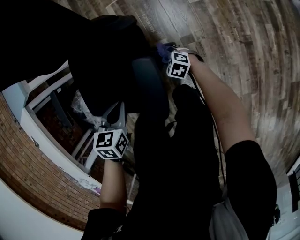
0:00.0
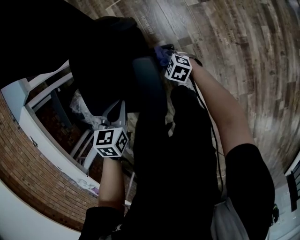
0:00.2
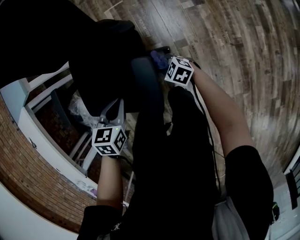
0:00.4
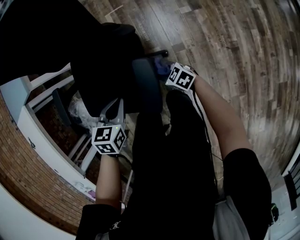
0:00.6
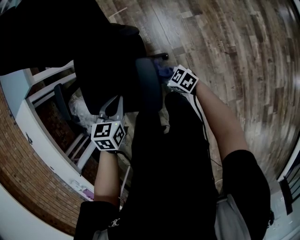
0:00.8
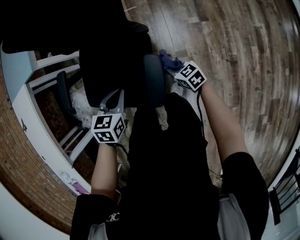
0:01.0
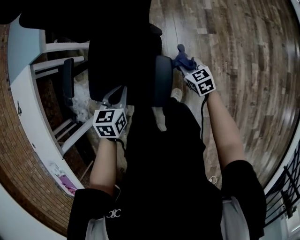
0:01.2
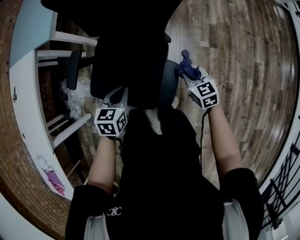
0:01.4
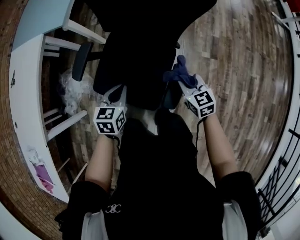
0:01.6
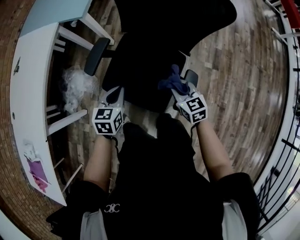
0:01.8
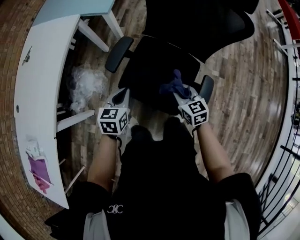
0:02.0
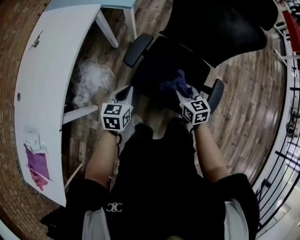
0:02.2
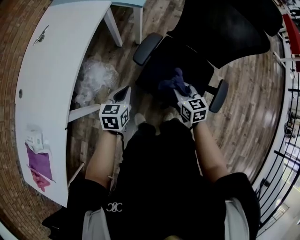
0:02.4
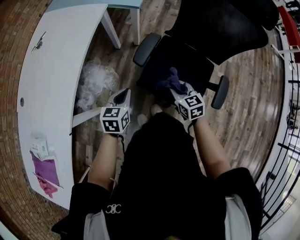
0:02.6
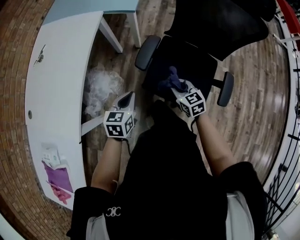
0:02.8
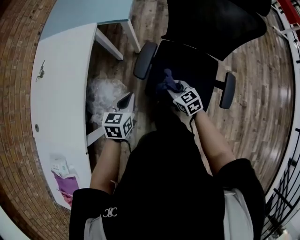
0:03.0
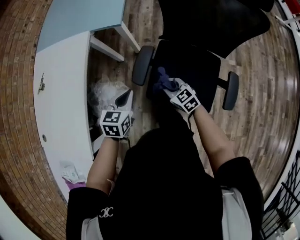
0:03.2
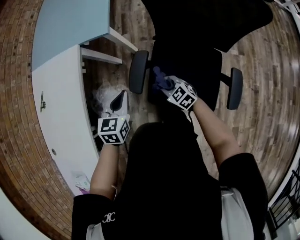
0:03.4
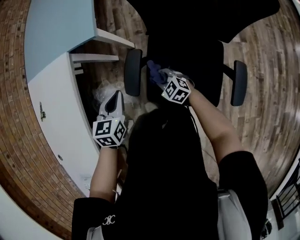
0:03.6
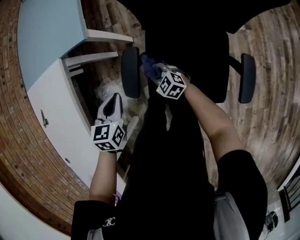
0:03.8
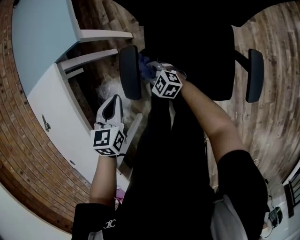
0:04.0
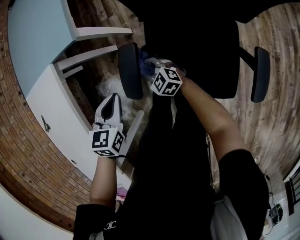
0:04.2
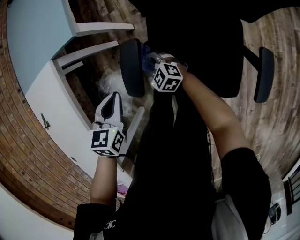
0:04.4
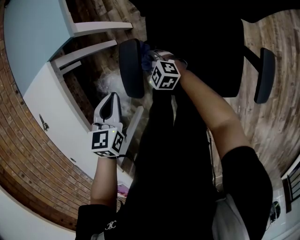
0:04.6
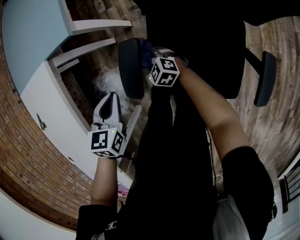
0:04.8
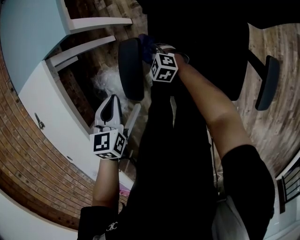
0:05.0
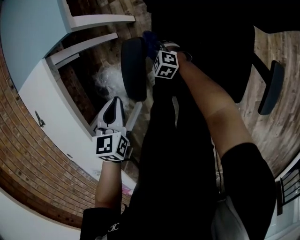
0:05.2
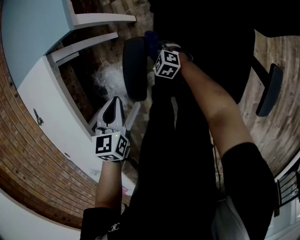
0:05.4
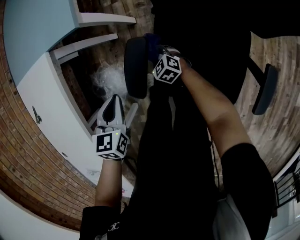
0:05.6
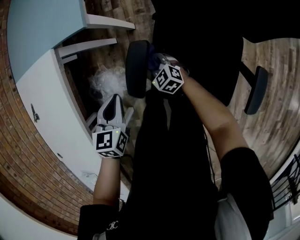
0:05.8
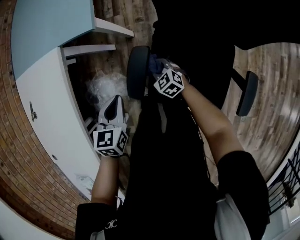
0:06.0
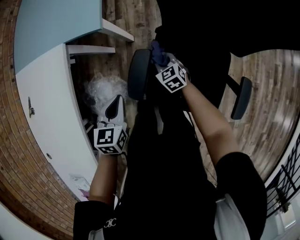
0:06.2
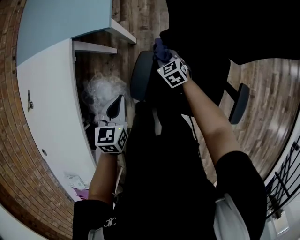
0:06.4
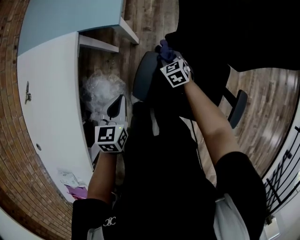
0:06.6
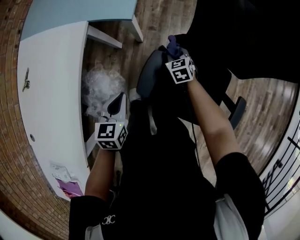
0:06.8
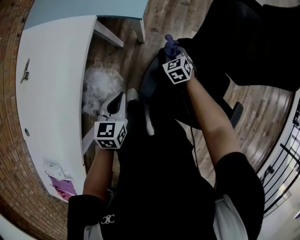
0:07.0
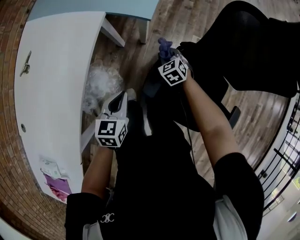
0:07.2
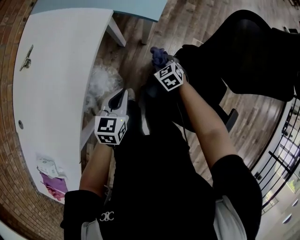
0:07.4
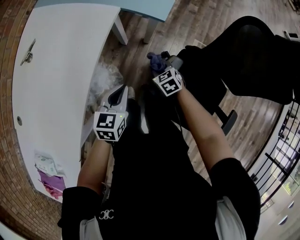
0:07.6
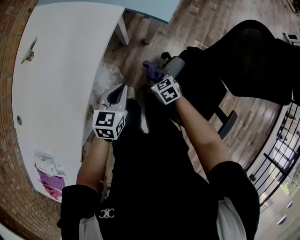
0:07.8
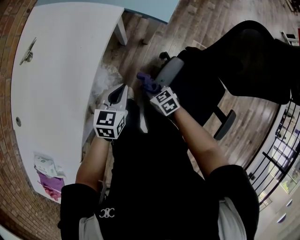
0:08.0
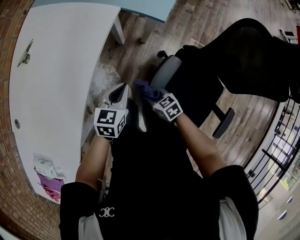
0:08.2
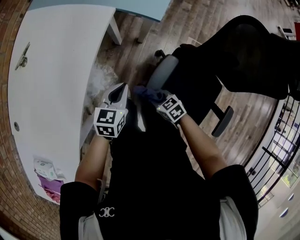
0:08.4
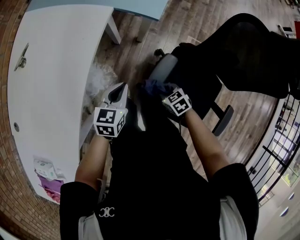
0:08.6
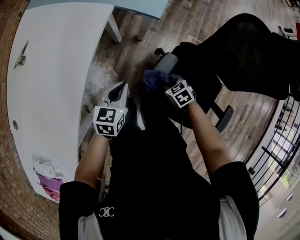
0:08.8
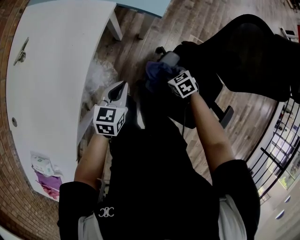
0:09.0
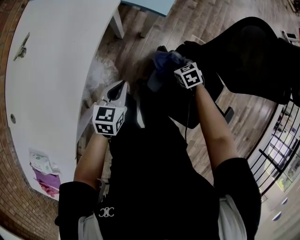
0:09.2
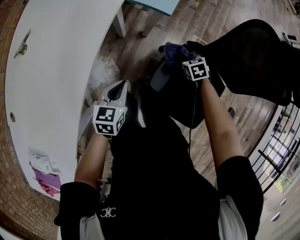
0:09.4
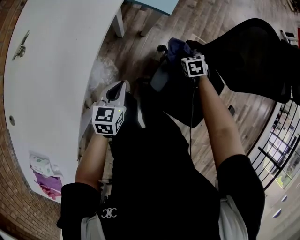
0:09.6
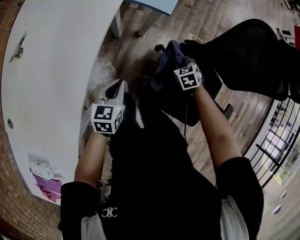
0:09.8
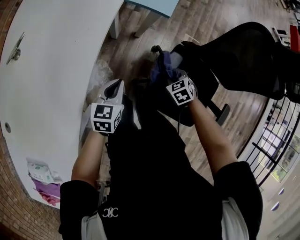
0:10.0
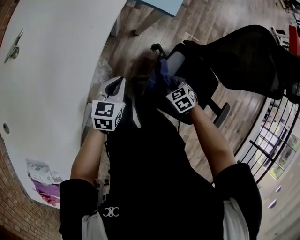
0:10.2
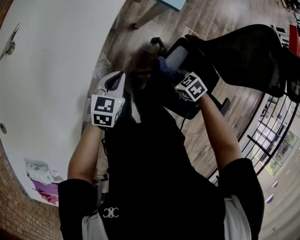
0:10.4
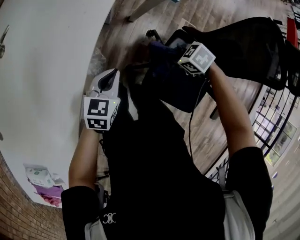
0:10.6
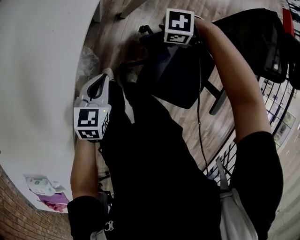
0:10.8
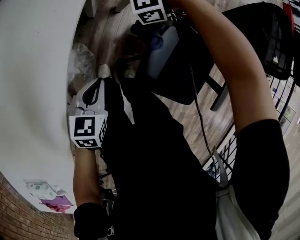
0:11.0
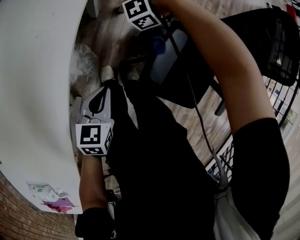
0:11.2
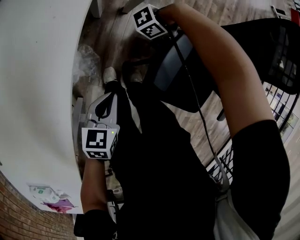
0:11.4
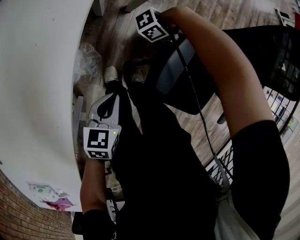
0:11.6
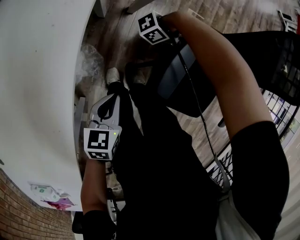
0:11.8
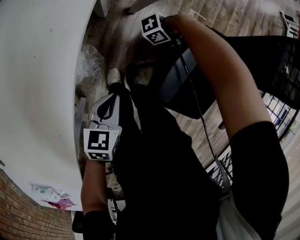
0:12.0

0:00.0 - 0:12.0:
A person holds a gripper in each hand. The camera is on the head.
0:00.0 - 0:01.6: The right gripper moves upward, roughly 40 cm, and rotates approximately 30 degrees. Meanwhile the left gripper shifts about 20 cm upward and to the left, and turns by approximately 30 degrees.
0:01.6 - 0:03.0: Both grippers travel together to the left, approximately 40 cm.
0:03.0 - 0:04.4: The grippers both shift forward and downward by roughly 25 cm. The left gripper swivels some 20 degrees.
0:04.4 - 0:06.0: The right gripper goes downward and returns, approximately 15 cm each way.
0:06.0 - 0:07.6: The left gripper heads to the left, covering roughly 15 cm. The right gripper heads to the left and upward, covering approximately 15 cm.
0:07.6 - 0:09.0: The right gripper is displaced to the right and backward by about 10 cm.
0:09.0 - 0:10.4: The right gripper shifts by roughly 10 cm; the left gripper changes place by about 10 cm.
0:10.4 - 0:12.0: The left gripper travels downward by roughly 10 cm. Meanwhile the right gripper moves downward, approximately 15 cm, and tilts its fingers roughly 40 degrees upward.

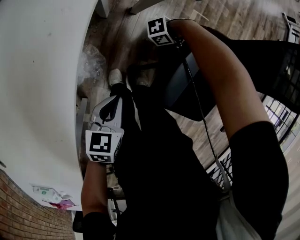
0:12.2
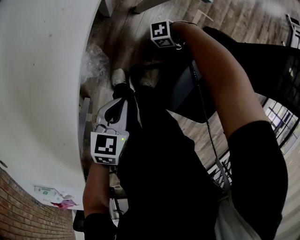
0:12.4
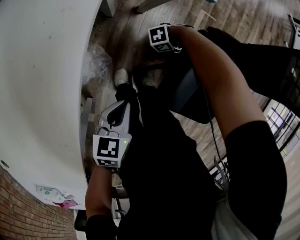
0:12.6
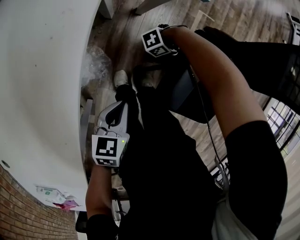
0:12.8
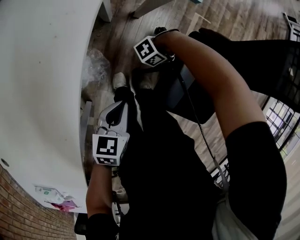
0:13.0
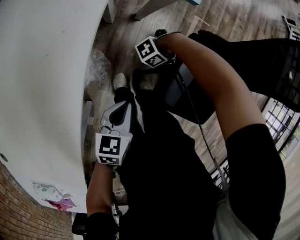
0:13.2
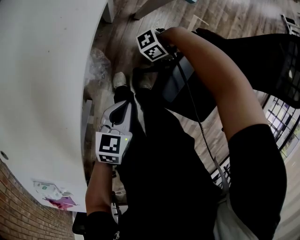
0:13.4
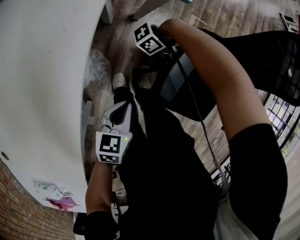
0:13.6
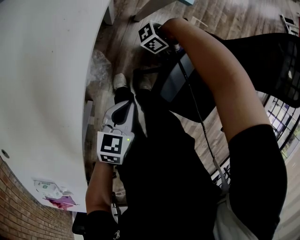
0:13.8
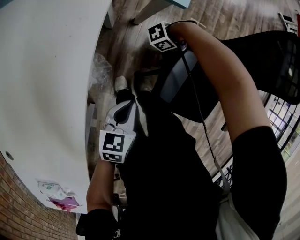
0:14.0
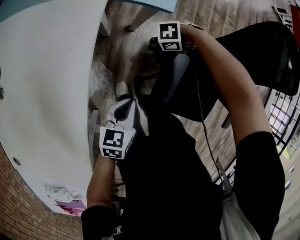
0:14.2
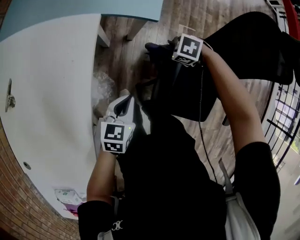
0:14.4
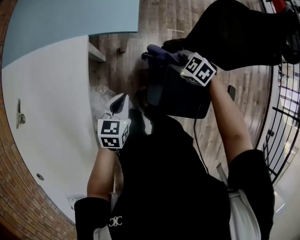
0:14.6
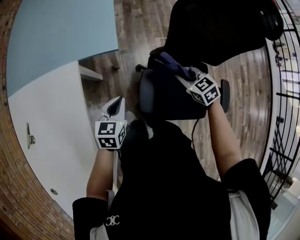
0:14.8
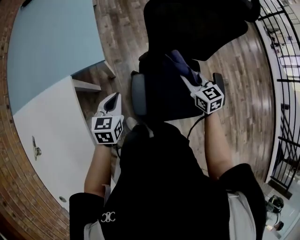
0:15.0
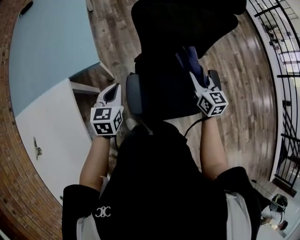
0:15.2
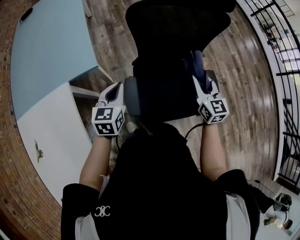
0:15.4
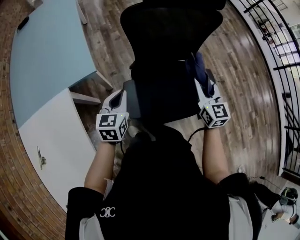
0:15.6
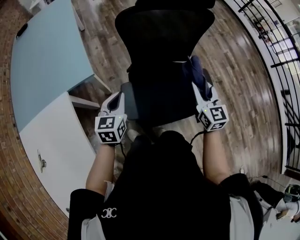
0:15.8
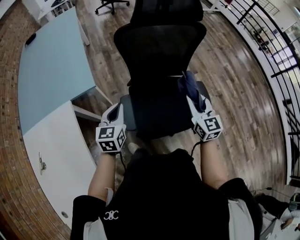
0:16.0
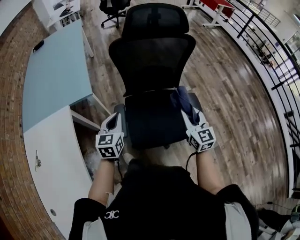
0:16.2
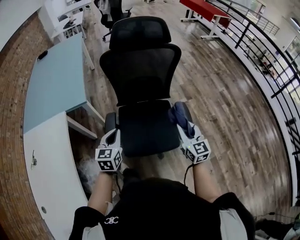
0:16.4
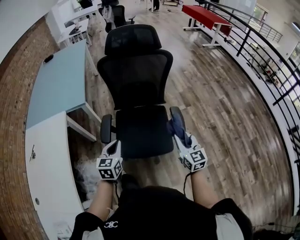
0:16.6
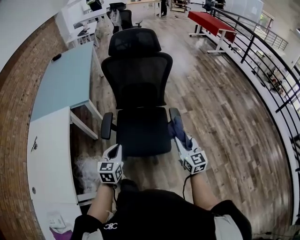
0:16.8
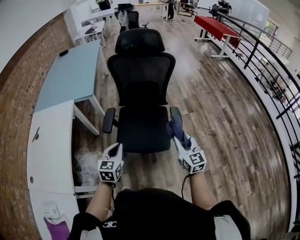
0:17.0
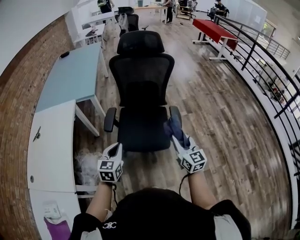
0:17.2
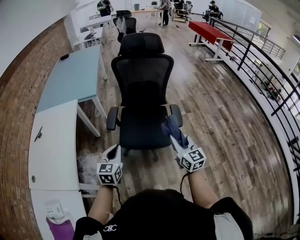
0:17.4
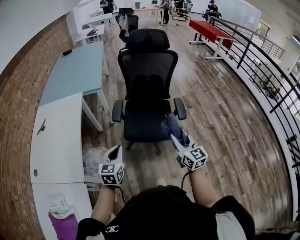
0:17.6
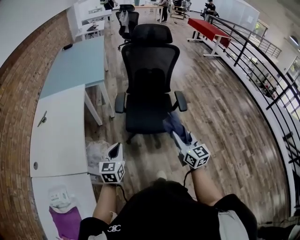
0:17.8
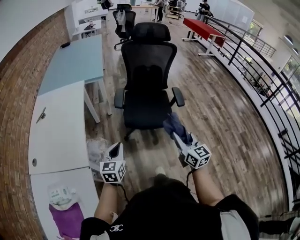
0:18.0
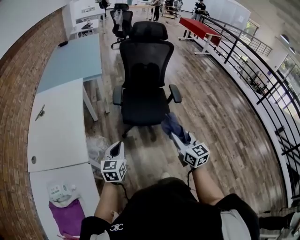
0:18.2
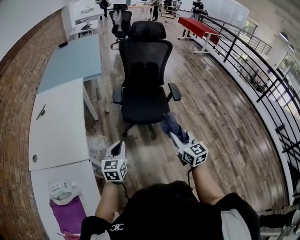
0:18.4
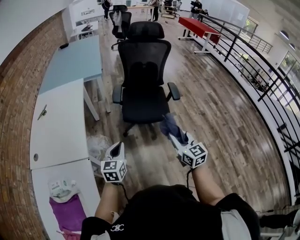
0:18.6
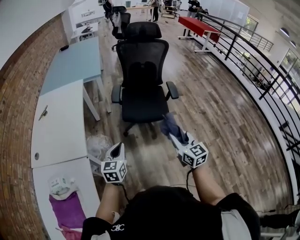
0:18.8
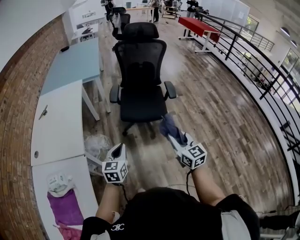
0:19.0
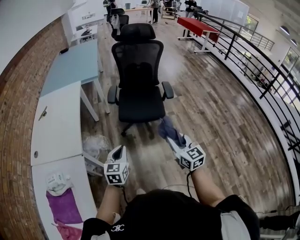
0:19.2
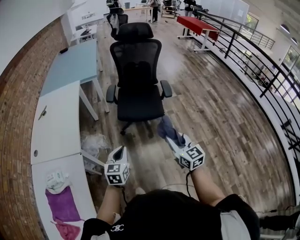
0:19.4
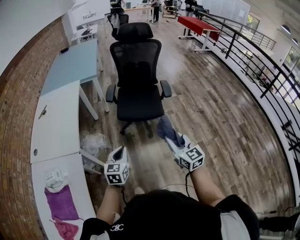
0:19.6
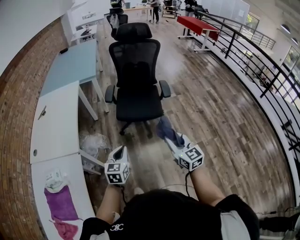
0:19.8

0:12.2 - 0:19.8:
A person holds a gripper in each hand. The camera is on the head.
0:12.2 - 0:13.8: The right gripper is displaced upward by about 10 cm. The left gripper ends up roughly 5 cm from where it was.
0:13.8 - 0:15.2: The right gripper is displaced upward by roughly 35 cm, and rotates about 170 degrees; the left gripper ends up roughly 30 cm from where it was, and changes its angle by roughly 30 degrees.
0:15.2 - 0:16.8: The two grippers go some 40 cm backward and to the right.
0:16.8 - 0:18.2: Both grippers travel together backward and to the left, approximately 35 cm.
0:18.2 - 0:19.8: The right gripper goes roughly 15 cm backward and to the right. The left gripper travels to the right and backward by about 20 cm.

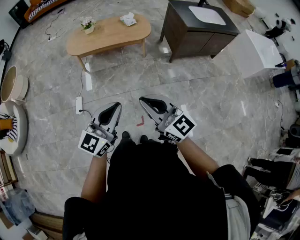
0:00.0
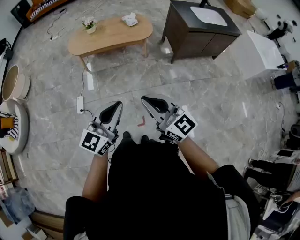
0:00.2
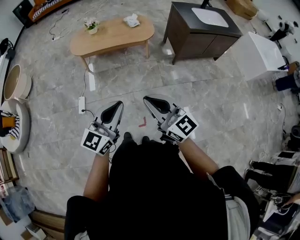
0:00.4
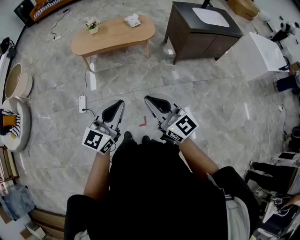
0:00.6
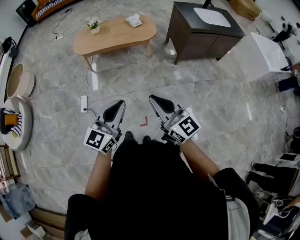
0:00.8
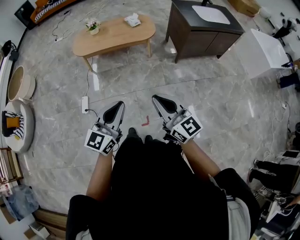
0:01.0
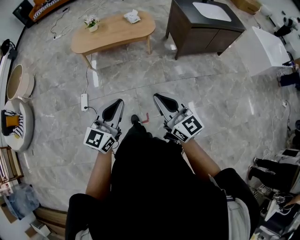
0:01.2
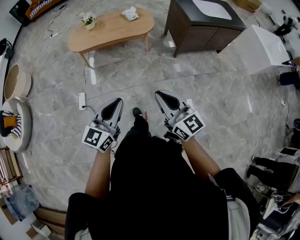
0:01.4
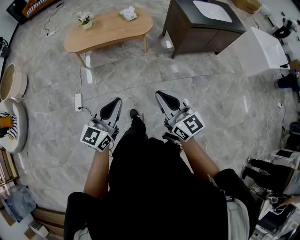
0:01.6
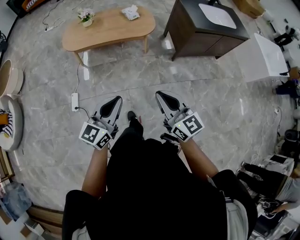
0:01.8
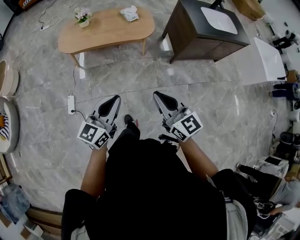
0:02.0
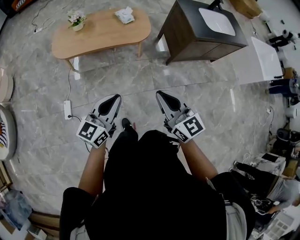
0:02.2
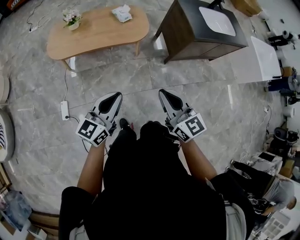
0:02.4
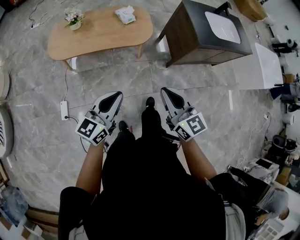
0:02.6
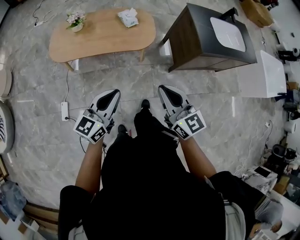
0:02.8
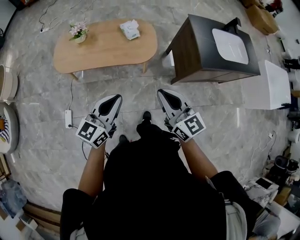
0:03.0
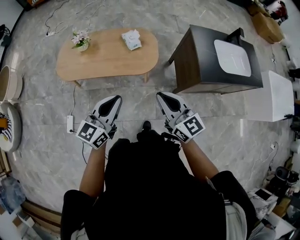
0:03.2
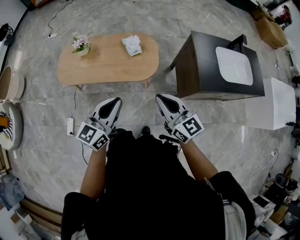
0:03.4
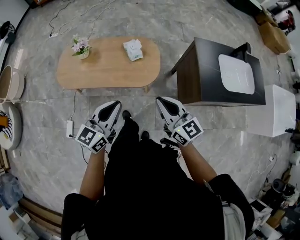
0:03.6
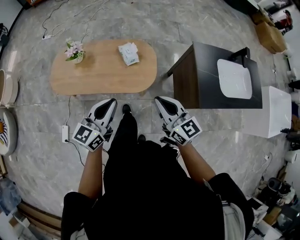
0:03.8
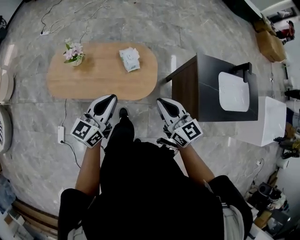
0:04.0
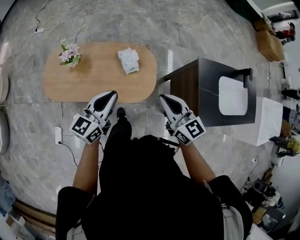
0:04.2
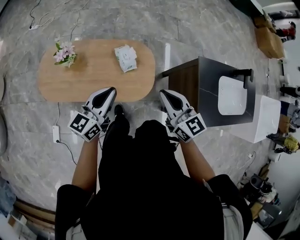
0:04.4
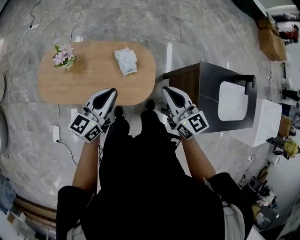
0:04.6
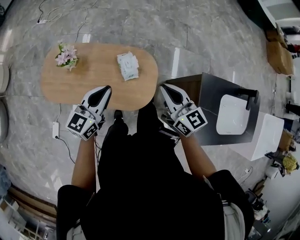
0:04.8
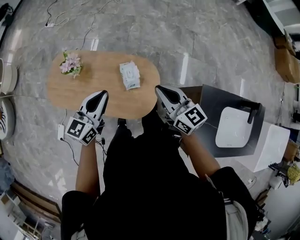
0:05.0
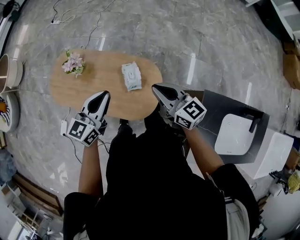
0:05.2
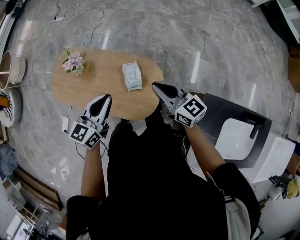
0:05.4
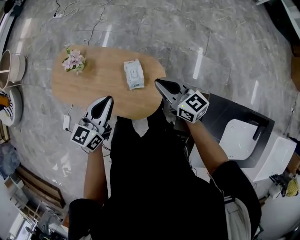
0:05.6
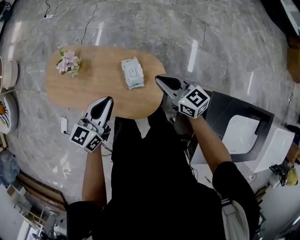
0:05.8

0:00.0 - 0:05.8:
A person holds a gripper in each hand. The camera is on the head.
0:00.0 - 0:01.4: The left gripper moves some 5 cm. Meanwhile the right gripper moves to the right, approximately 10 cm.
0:01.4 - 0:02.8: Both grippers move forward, approximately 40 cm.
0:02.8 - 0:04.4: The pair of grippers is taken forward, some 50 cm.
0:04.4 - 0:05.8: The right gripper travels forward and downward by about 30 cm, and turns by some 30 degrees. The left gripper moves forward and to the right, approximately 15 cm.
